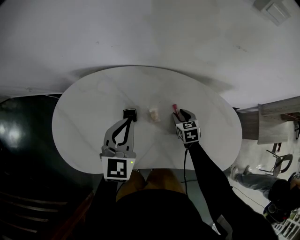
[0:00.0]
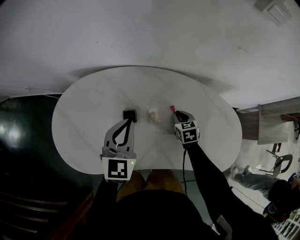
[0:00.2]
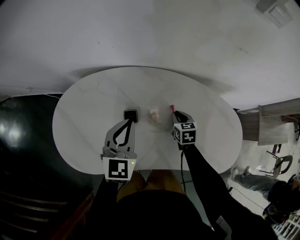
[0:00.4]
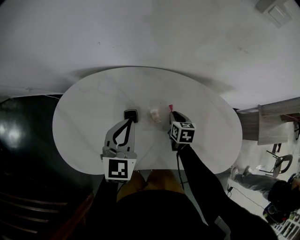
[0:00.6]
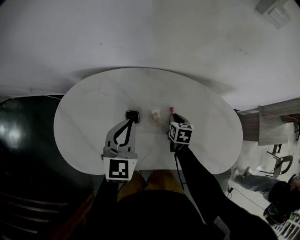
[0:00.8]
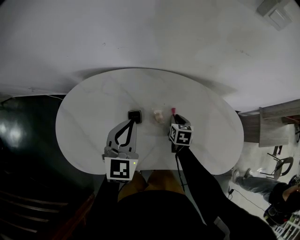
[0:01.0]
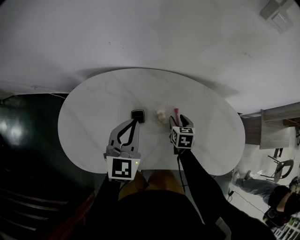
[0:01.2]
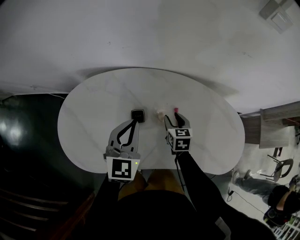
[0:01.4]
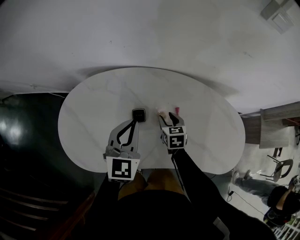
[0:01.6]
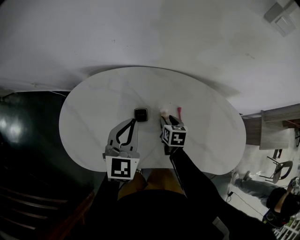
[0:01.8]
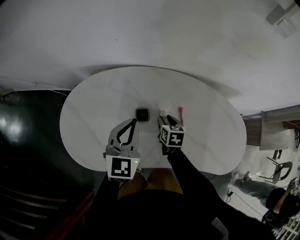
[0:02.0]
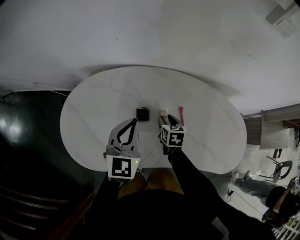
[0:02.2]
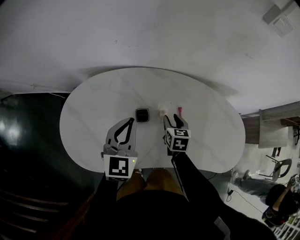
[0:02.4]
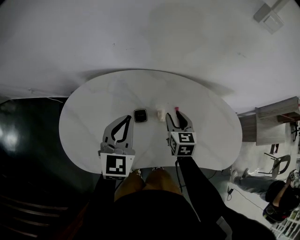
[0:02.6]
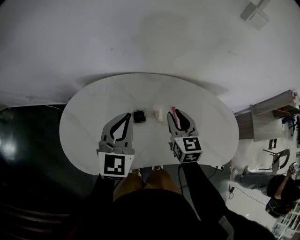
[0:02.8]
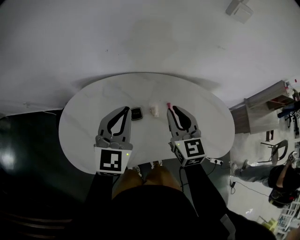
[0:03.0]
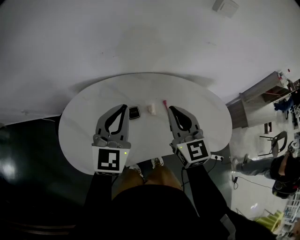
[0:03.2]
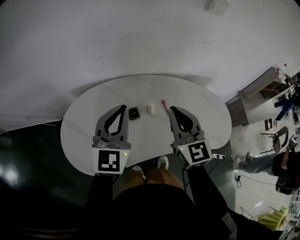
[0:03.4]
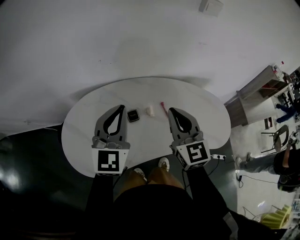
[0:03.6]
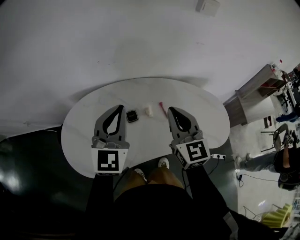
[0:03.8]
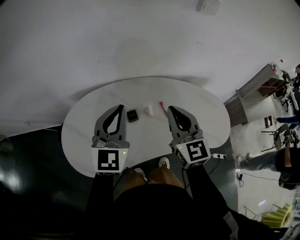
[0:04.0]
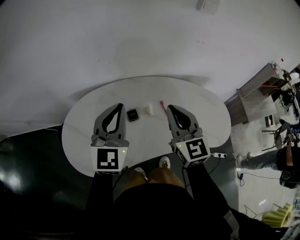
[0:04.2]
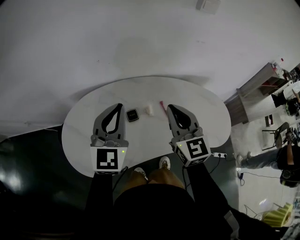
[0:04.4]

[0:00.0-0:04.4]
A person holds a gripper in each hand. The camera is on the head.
0:00.0 to 0:01.4: The right gripper is displaced to the left by some 10 cm, and closes, then opens again.
0:01.4 to 0:03.0: The left gripper is displaced upward by roughly 10 cm; the right gripper heads upward, covering roughly 25 cm, swivels some 30 degrees, and closes up.
0:03.0 to 0:04.4: The right gripper heads upward and backward, covering some 10 cm; the left gripper ends up roughly 5 cm from where it was.

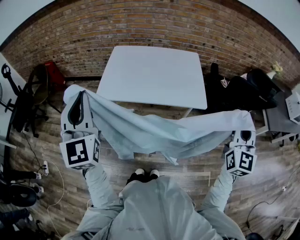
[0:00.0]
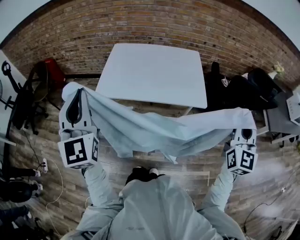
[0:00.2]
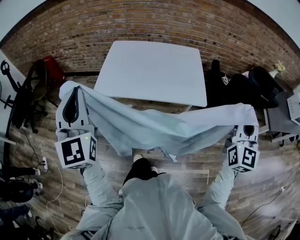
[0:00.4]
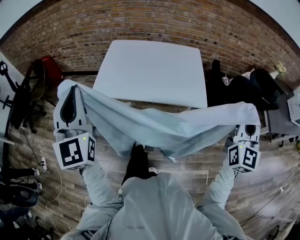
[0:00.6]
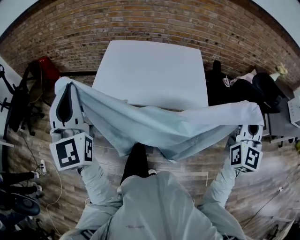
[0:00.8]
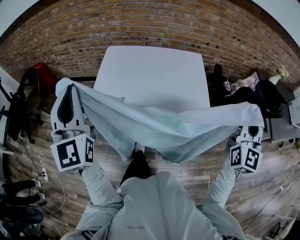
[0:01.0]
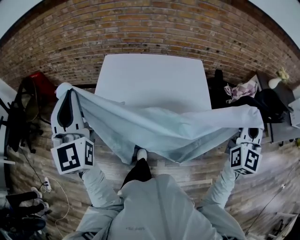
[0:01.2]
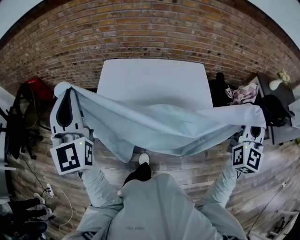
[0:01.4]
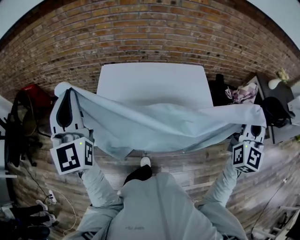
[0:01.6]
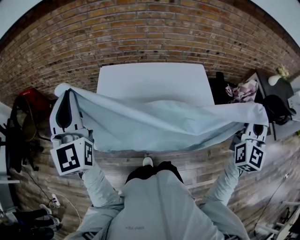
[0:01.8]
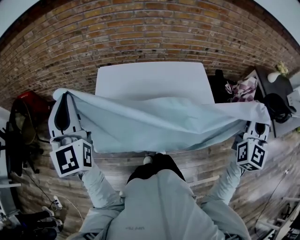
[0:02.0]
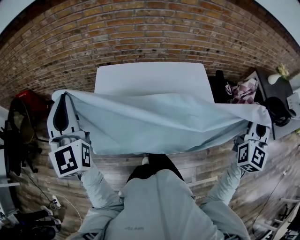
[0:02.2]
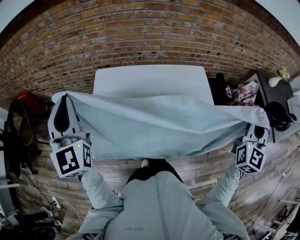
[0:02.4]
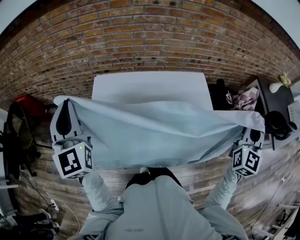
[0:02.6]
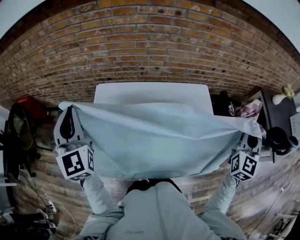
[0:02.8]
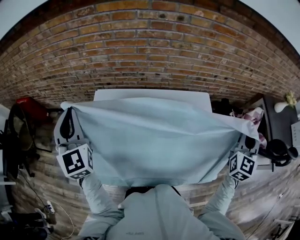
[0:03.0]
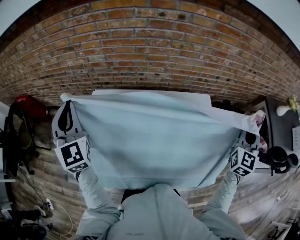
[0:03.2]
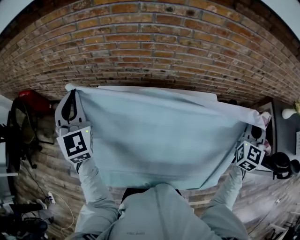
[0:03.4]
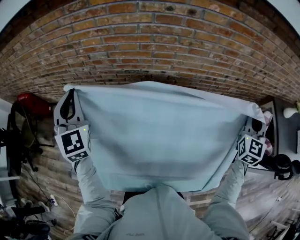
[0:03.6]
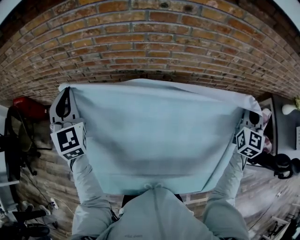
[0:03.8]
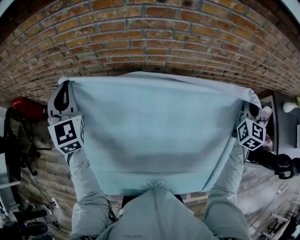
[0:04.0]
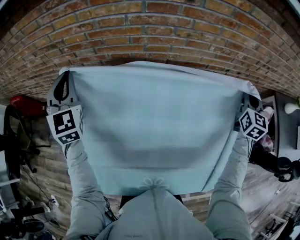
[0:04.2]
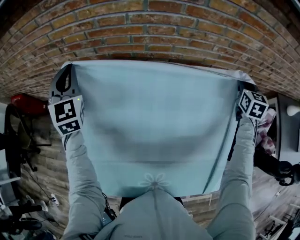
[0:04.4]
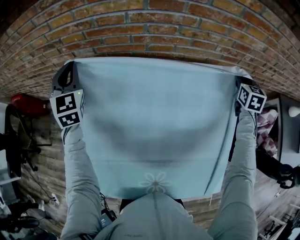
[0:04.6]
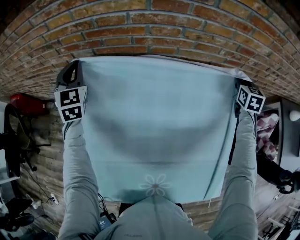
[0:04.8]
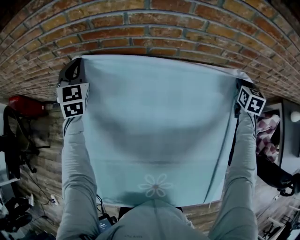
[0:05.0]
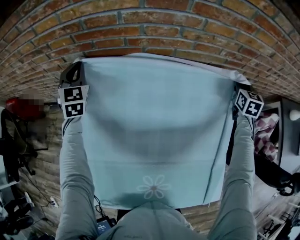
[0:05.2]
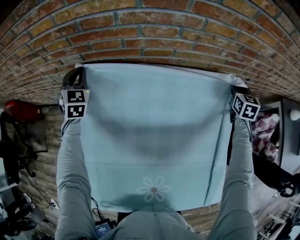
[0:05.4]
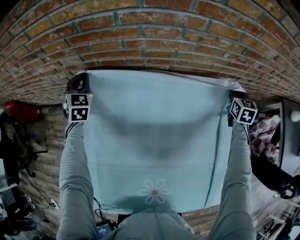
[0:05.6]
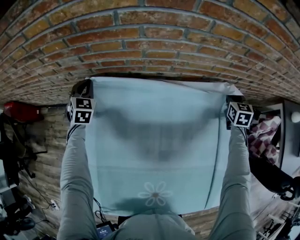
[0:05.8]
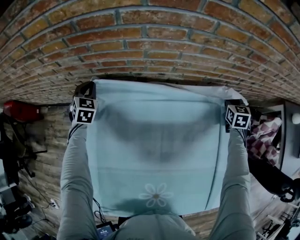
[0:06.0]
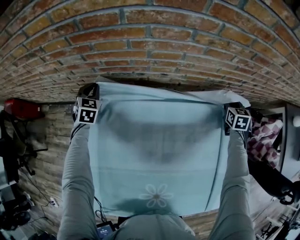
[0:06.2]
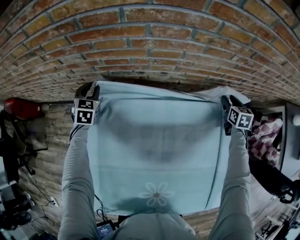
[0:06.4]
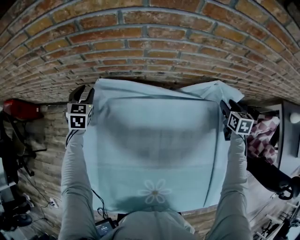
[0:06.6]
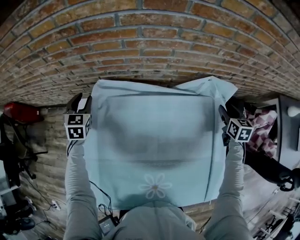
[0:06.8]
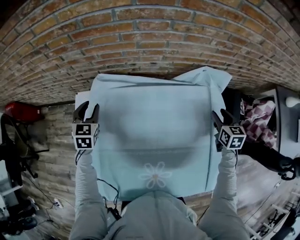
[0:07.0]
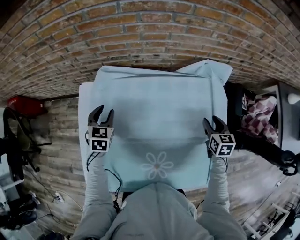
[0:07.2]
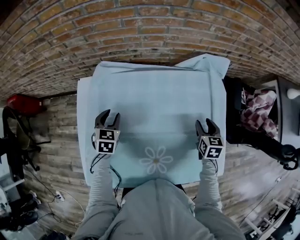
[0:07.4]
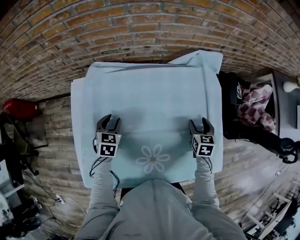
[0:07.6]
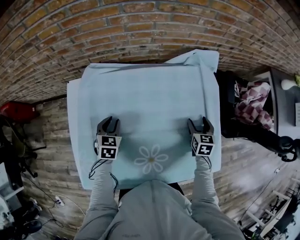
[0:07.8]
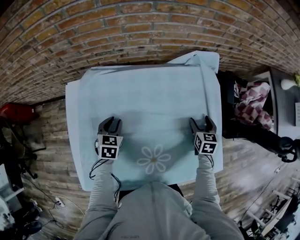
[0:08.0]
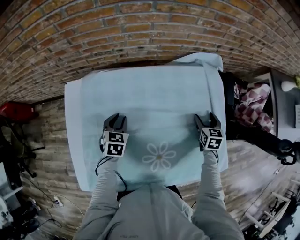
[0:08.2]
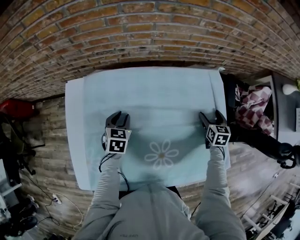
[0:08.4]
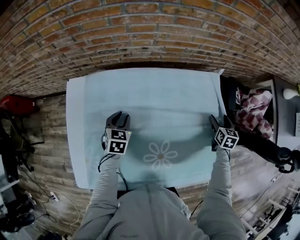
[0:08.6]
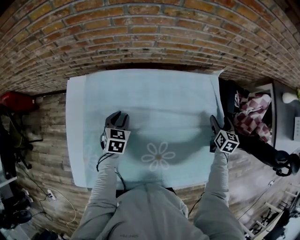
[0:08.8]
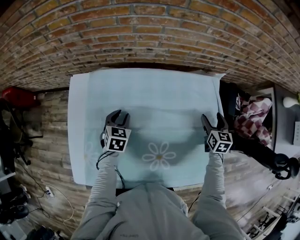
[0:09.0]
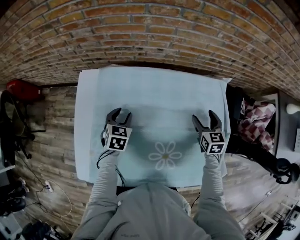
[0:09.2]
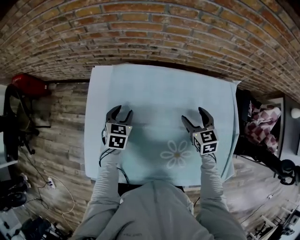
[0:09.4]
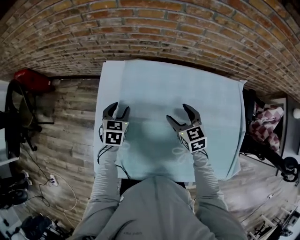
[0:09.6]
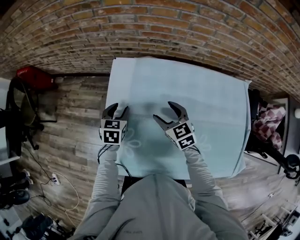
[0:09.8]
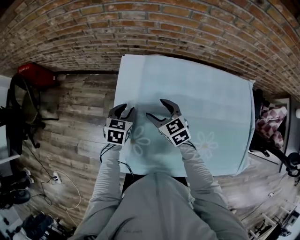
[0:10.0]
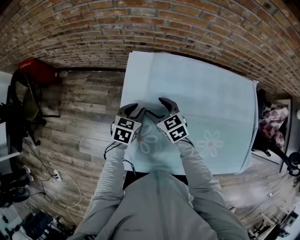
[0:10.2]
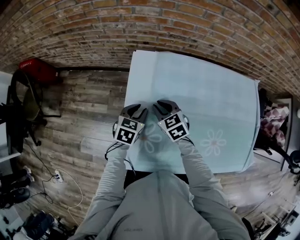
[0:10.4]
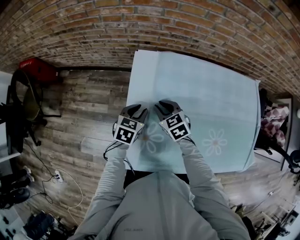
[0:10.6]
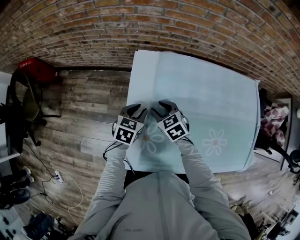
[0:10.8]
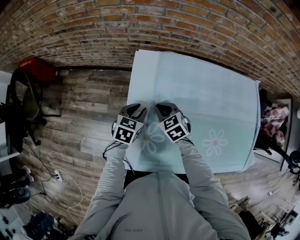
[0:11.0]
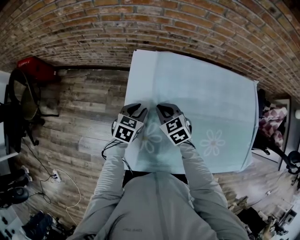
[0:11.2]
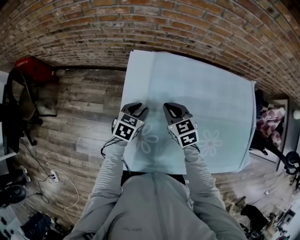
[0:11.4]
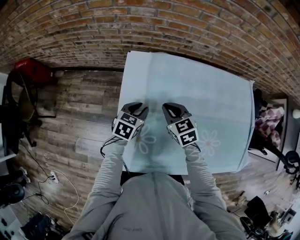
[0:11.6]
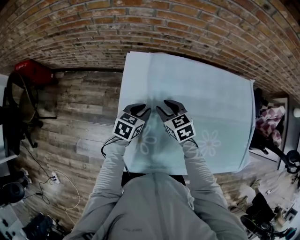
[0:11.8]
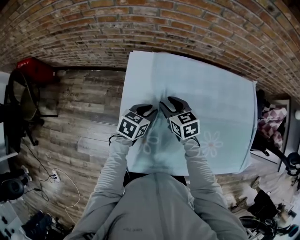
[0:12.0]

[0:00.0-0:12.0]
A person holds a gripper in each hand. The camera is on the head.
0:00.0 to 0:01.6: The two grippers go roughly 30 cm forward.
0:01.6 to 0:03.0: The left gripper shifts about 20 cm forward and downward. Meanwhile the right gripper goes roughly 20 cm forward.
0:03.0 to 0:04.4: The grippers both shift forward by about 30 cm. The right gripper rotates about 30 degrees.
0:04.4 to 0:06.0: The right gripper heads downward, covering roughly 20 cm. The left gripper heads downward and forward, covering approximately 30 cm, and tilts its fingers roughly 30 degrees downward.
0:06.0 to 0:07.6: The left gripper shifts some 30 cm backward and to the right, rotates roughly 20 degrees, and opens up. Meanwhile the right gripper heads backward, covering roughly 30 cm, and opens up.
0:07.6 to 0:09.0: The right gripper moves forward and to the right, approximately 10 cm. Meanwhile the left gripper shifts roughly 5 cm to the right.
0:09.0 to 0:10.4: The right gripper ends up some 60 cm from where it was, rotates roughly 40 degrees, and closes. Meanwhile the left gripper ends up approximately 25 cm from where it was.
0:10.4 to 0:12.0: The grippers both shift to the right by some 5 cm.

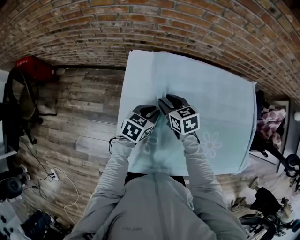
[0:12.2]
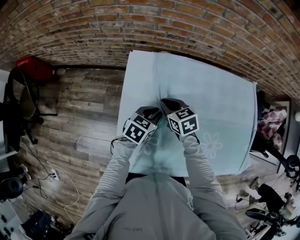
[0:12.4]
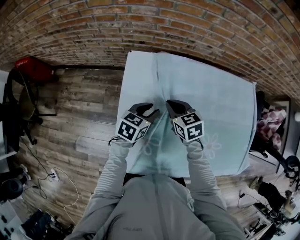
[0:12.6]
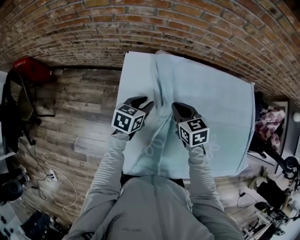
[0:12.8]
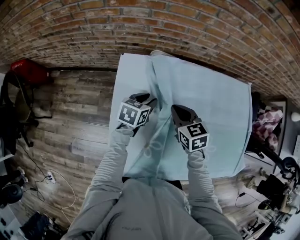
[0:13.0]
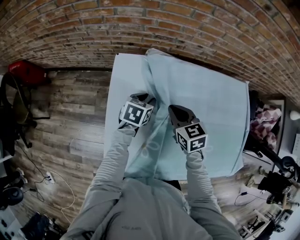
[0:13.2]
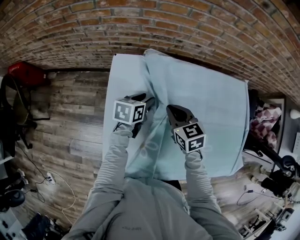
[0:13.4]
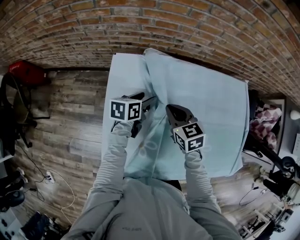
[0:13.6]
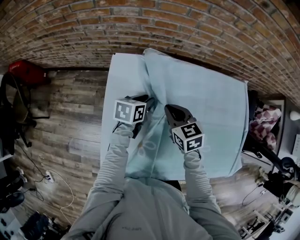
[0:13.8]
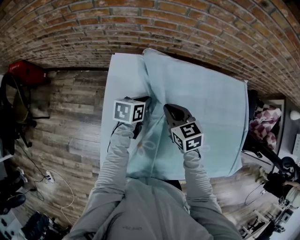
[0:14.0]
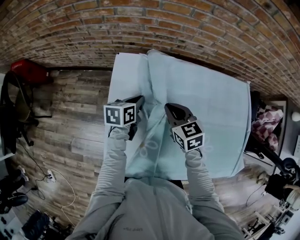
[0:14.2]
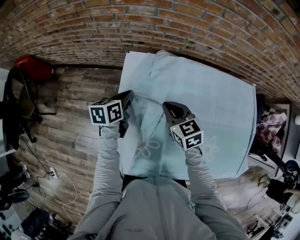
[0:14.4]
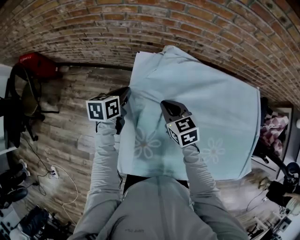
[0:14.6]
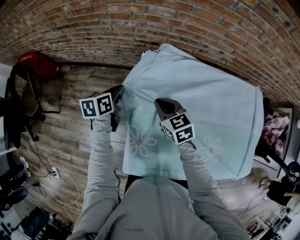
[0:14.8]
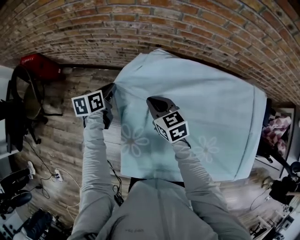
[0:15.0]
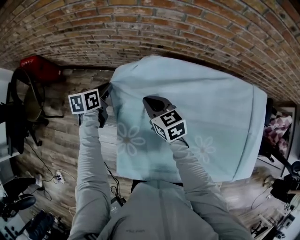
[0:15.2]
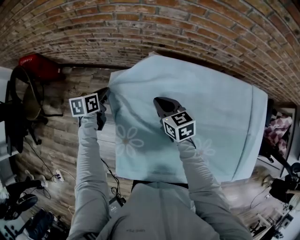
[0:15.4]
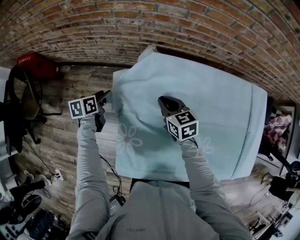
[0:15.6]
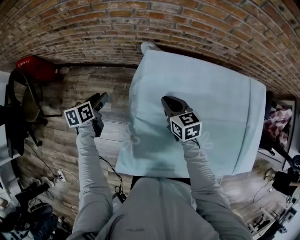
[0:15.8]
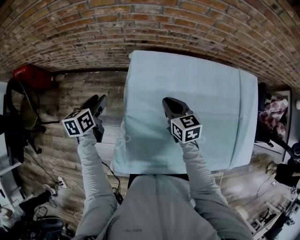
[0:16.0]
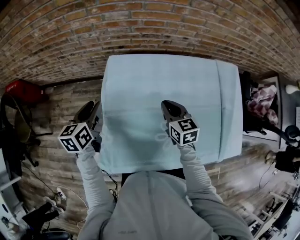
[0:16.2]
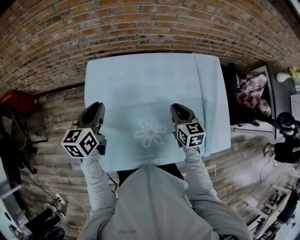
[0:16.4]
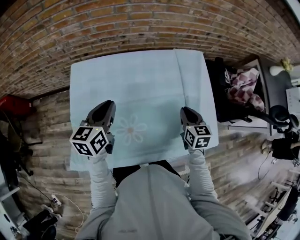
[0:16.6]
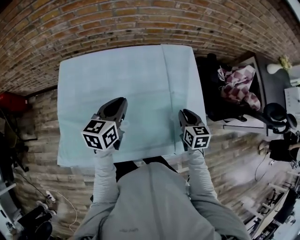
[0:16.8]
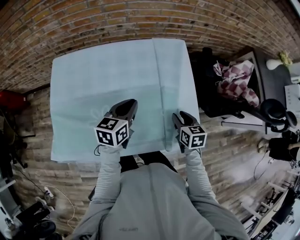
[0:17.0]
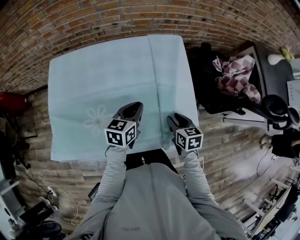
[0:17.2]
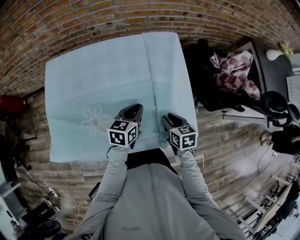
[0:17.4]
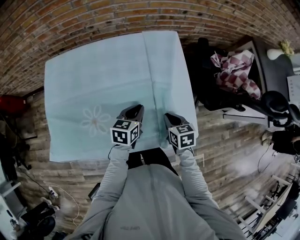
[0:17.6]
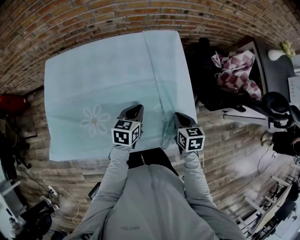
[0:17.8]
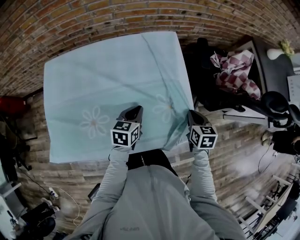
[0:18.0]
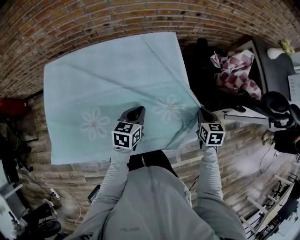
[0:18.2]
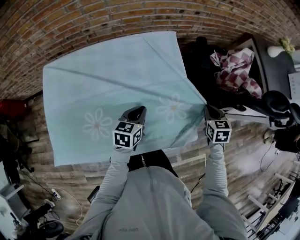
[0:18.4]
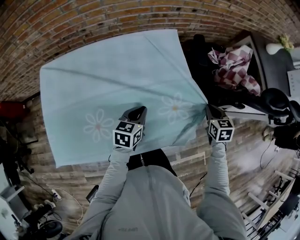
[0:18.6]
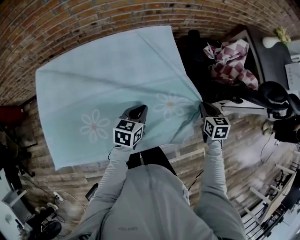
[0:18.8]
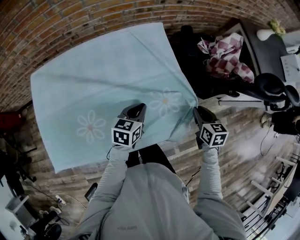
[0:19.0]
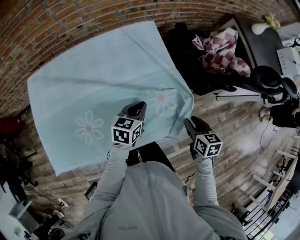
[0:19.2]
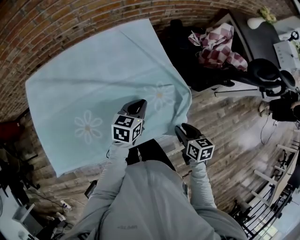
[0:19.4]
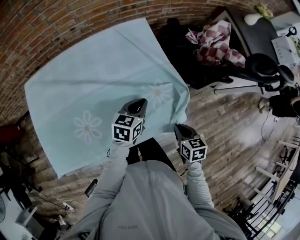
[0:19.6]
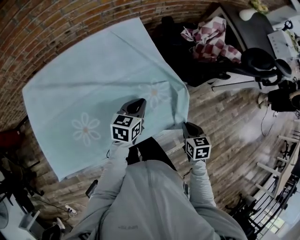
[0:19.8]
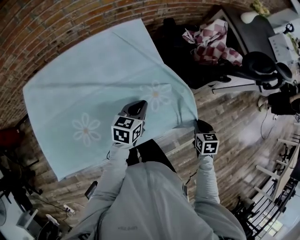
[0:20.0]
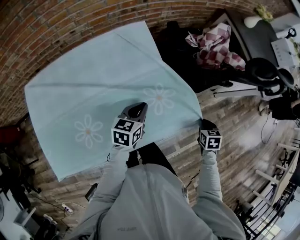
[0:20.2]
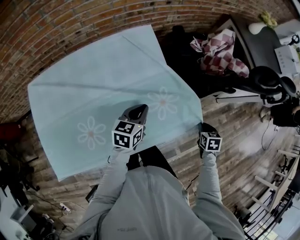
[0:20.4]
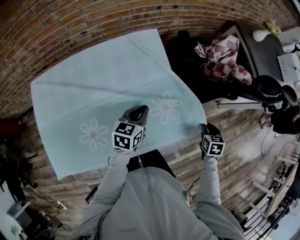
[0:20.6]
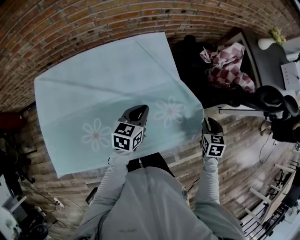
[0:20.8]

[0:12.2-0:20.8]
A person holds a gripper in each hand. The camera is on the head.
0:12.2 to 0:13.6: The left gripper is displaced forward by some 10 cm, turns by some 20 degrees, and opens. The right gripper heads to the right, covering about 10 cm, and closes its fingers.
0:13.6 to 0:15.0: The grippers both shift to the left by roughly 25 cm. The left gripper rotates approximately 20 degrees, and closes up.
0:15.0 to 0:16.6: The right gripper moves some 50 cm, and swivels about 40 degrees, while the left gripper ends up approximately 40 cm from where it was, rotates some 30 degrees, and opens, then closes once more.
0:16.6 to 0:18.0: The left gripper shifts some 35 cm to the right and downward, while the right gripper is displaced to the right by approximately 20 cm.
0:18.0 to 0:19.4: The right gripper shifts roughly 15 cm backward. The left gripper travels to the right by some 10 cm.
0:19.4 to 0:20.8: The left gripper moves roughly 5 cm; the right gripper shifts approximately 15 cm forward and to the right, and changes its angle by approximately 30 degrees.
